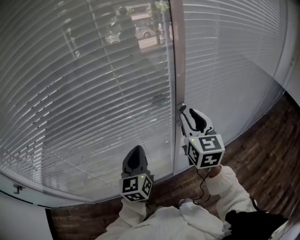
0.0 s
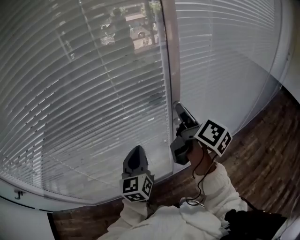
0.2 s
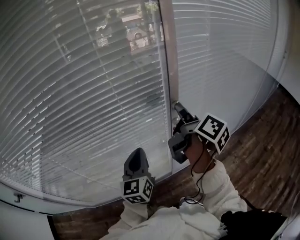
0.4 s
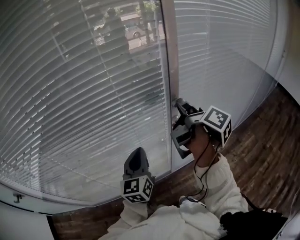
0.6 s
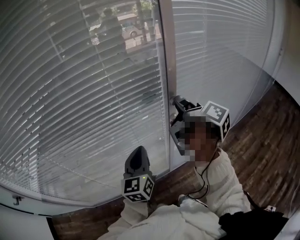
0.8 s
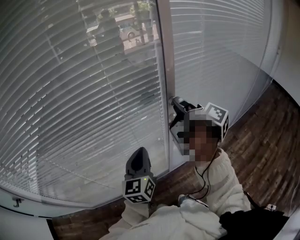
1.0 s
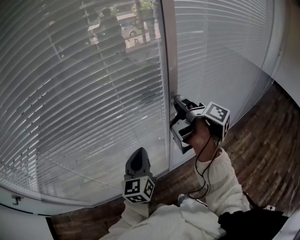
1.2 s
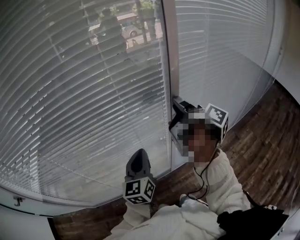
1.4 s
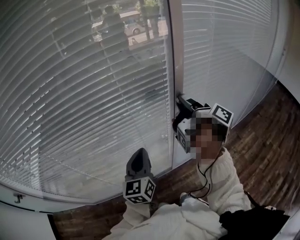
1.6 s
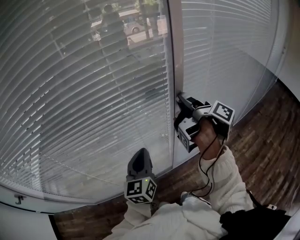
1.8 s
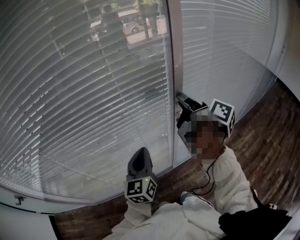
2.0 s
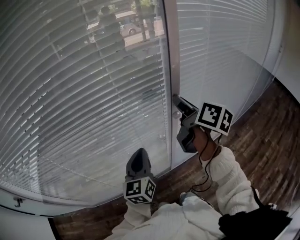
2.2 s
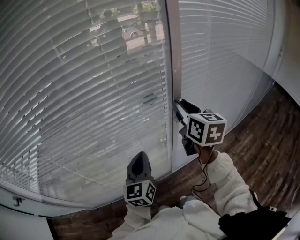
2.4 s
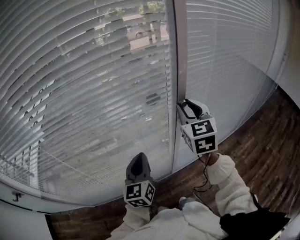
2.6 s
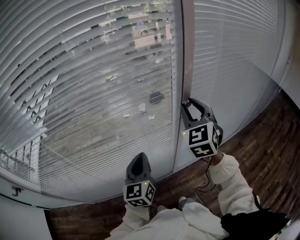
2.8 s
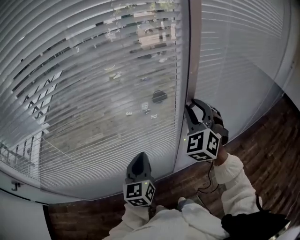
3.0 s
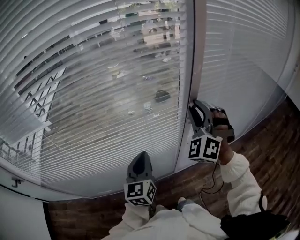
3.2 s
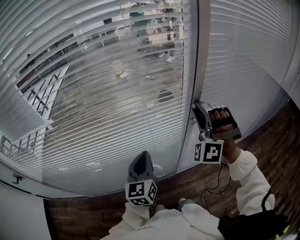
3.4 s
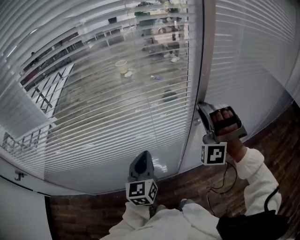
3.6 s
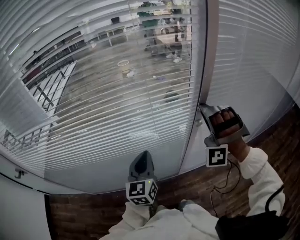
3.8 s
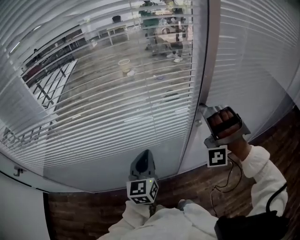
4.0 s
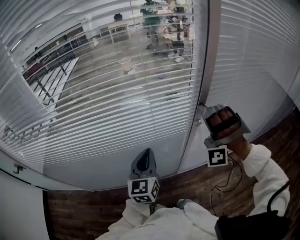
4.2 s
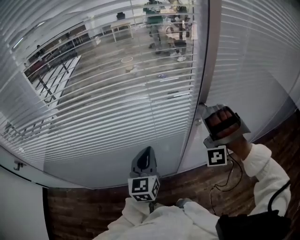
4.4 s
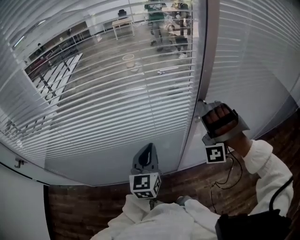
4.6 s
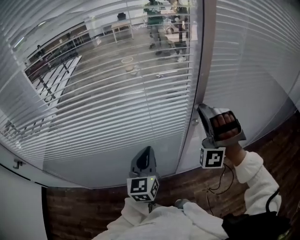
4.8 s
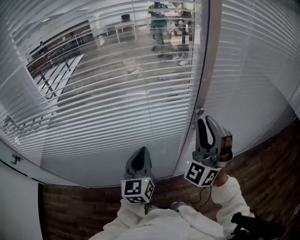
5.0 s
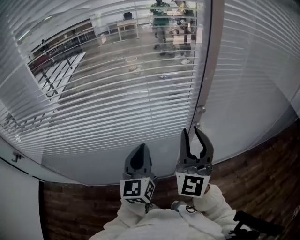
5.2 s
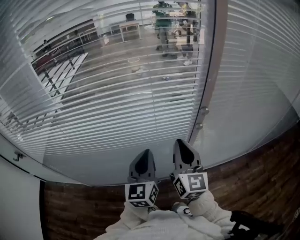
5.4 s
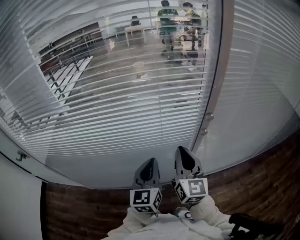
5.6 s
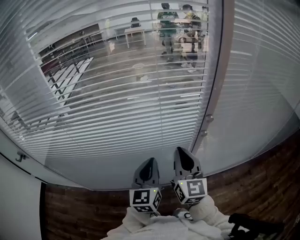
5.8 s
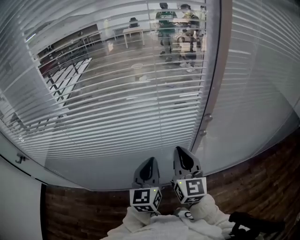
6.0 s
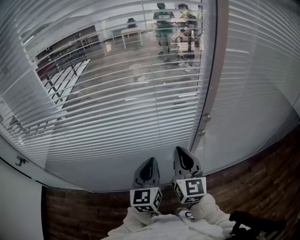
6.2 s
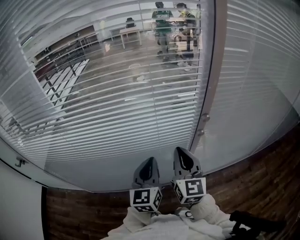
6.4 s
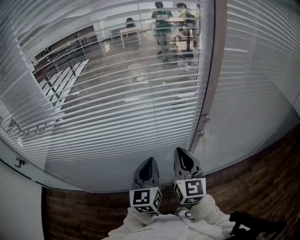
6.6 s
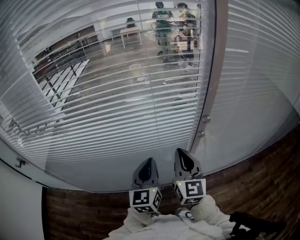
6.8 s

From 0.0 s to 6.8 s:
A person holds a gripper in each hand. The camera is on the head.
From 0.0 s to 1.4 s: The right gripper rotates around the line of its fingers by roughly 90 degrees, clockwise from behind.
From 1.4 s to 2.8 s: The right gripper twists about 120 degrees counterclockwise, seen from behind.
From 2.8 s to 4.0 s: The right gripper rotates around the line of its fingers by some 90 degrees, counterclockwise from behind.
From 4.0 s to 5.4 s: The right gripper shifts roughly 10 cm backward, to the left and downward, rotates around the line of its fingers by about 130 degrees, clockwise from behind, and closes its fingers.
From 5.4 s to 6.8 s: There are only small adjustments of the grippers.

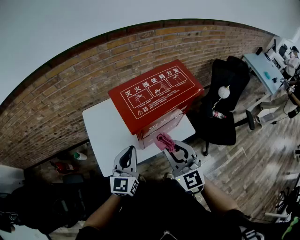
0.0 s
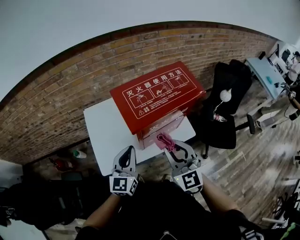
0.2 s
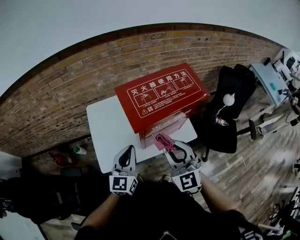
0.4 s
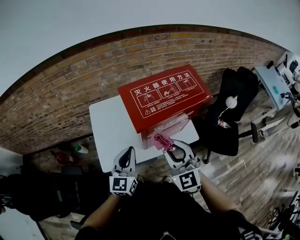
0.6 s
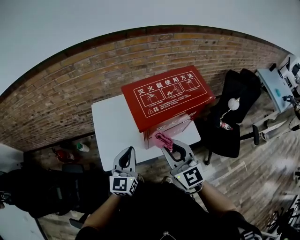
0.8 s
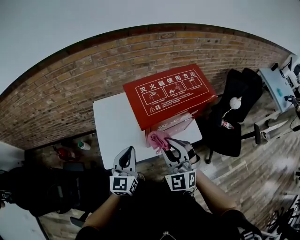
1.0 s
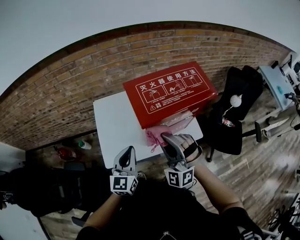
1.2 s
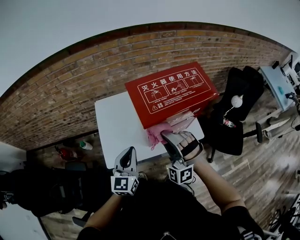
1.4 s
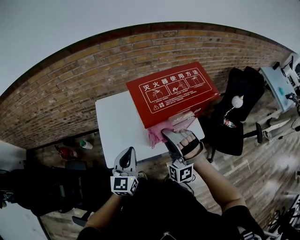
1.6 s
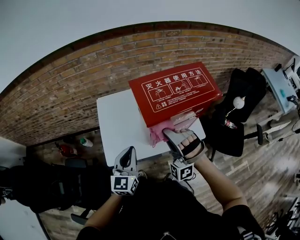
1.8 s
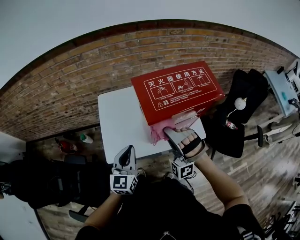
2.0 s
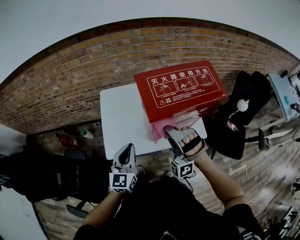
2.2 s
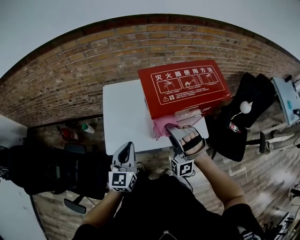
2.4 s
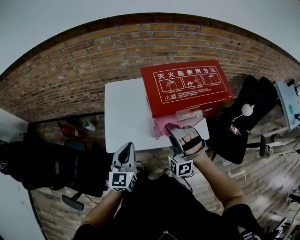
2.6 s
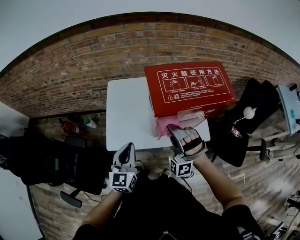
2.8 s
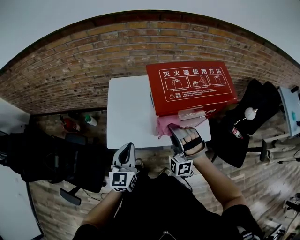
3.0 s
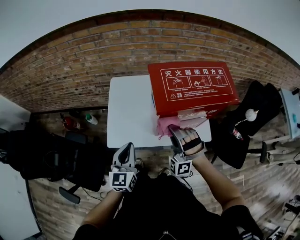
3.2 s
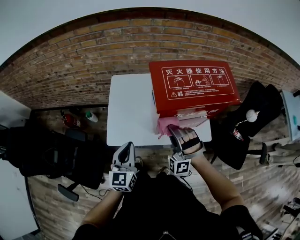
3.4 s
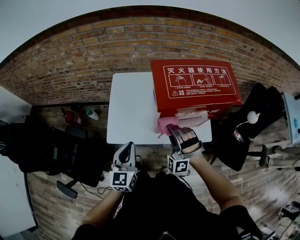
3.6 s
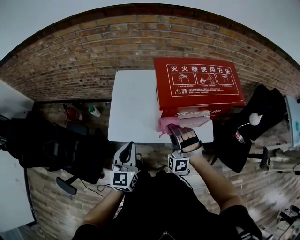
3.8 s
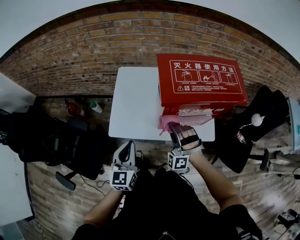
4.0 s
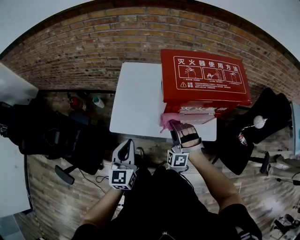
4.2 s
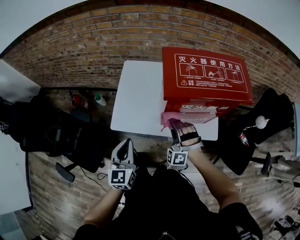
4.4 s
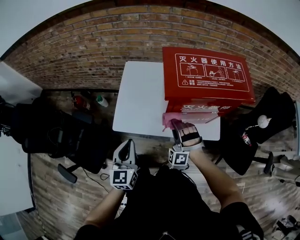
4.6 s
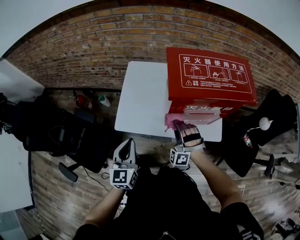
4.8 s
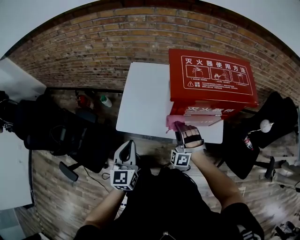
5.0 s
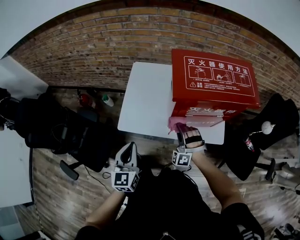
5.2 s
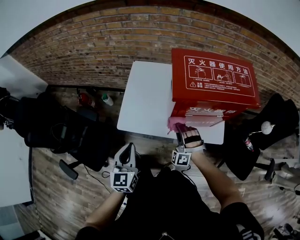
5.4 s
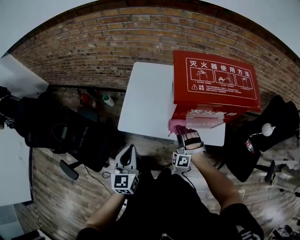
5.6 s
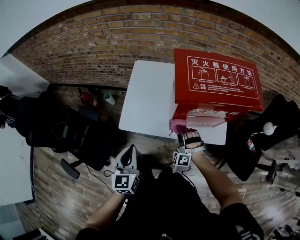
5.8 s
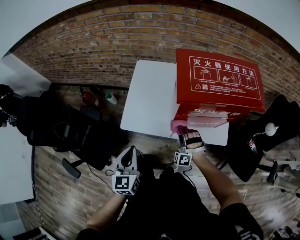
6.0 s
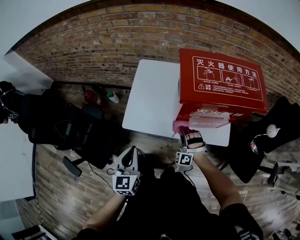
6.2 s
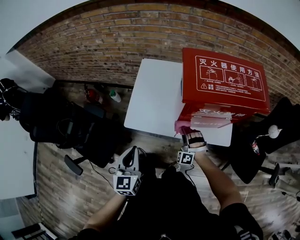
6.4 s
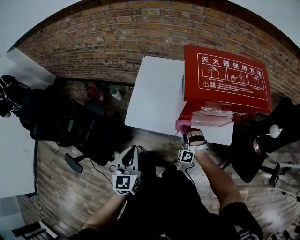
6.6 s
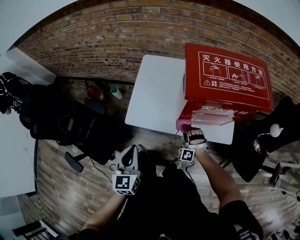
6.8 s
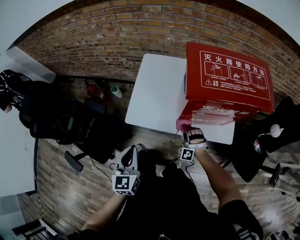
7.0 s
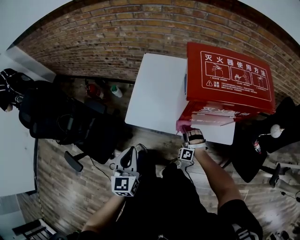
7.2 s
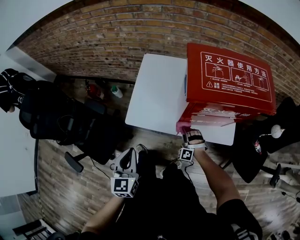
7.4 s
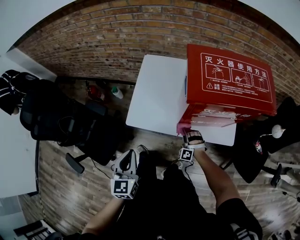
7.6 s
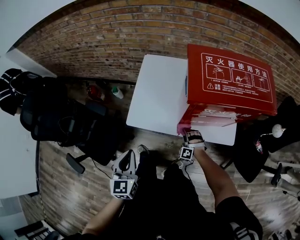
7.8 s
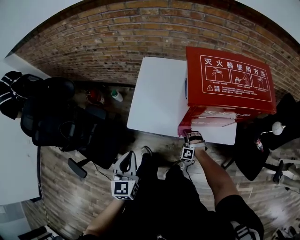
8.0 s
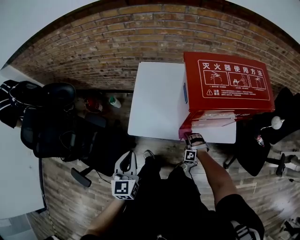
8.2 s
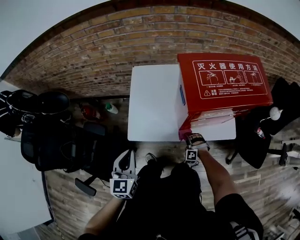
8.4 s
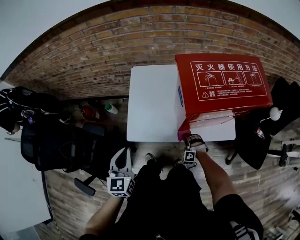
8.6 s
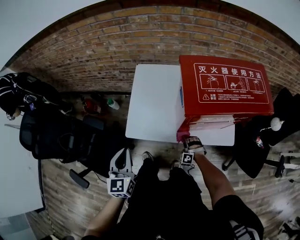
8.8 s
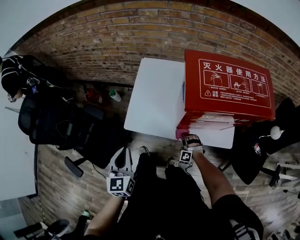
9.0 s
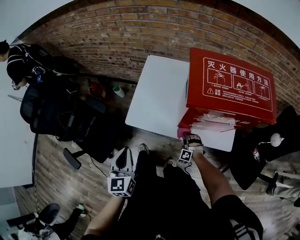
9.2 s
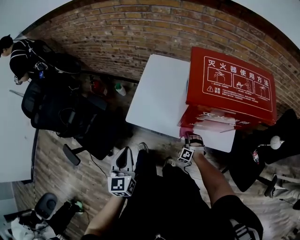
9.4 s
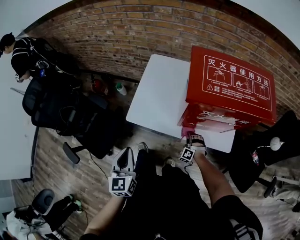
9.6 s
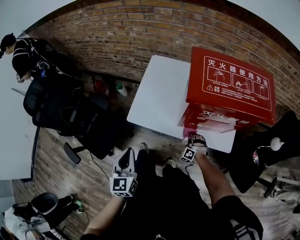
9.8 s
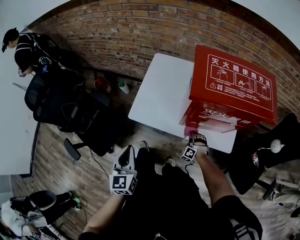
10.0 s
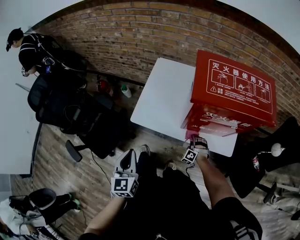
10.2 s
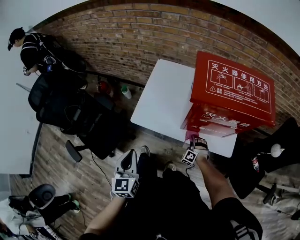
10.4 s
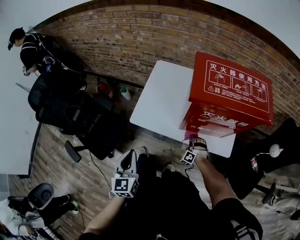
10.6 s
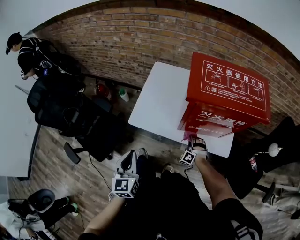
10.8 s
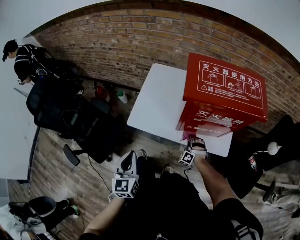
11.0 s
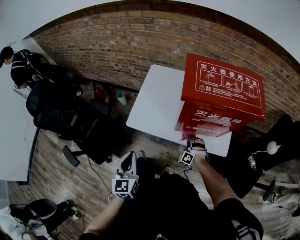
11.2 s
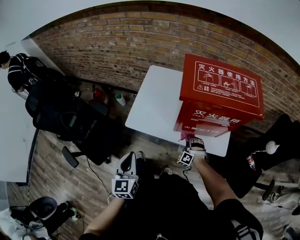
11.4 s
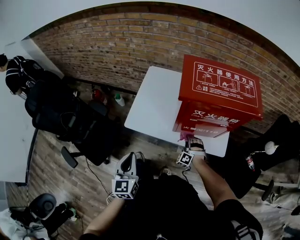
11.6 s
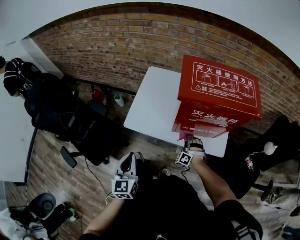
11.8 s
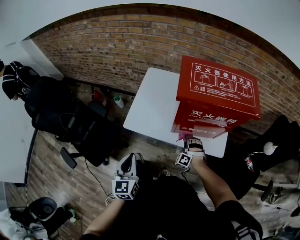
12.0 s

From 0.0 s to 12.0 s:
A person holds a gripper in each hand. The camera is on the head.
From 0.0 s to 1.6 s: The left gripper changes place by roughly 5 cm.
From 1.6 s to 3.0 s: The left gripper moves about 5 cm.
From 3.0 s to 4.4 s: The left gripper changes place by approximately 5 cm.
From 9.0 s to 10.4 s: The left gripper changes place by some 10 cm.

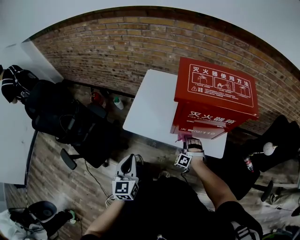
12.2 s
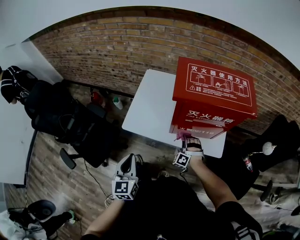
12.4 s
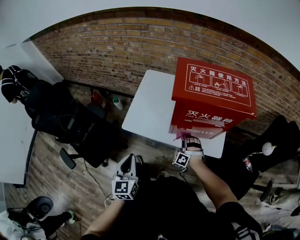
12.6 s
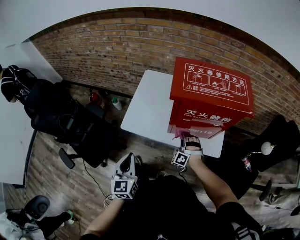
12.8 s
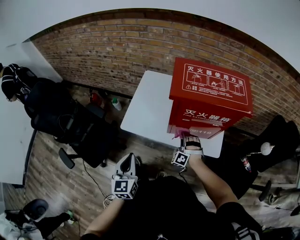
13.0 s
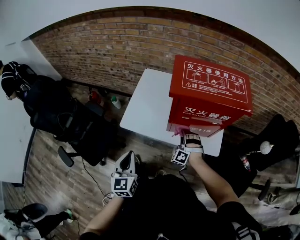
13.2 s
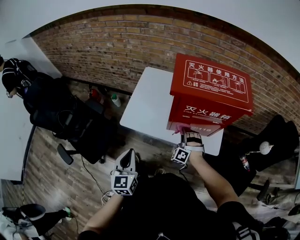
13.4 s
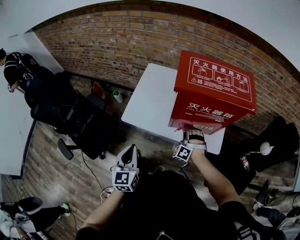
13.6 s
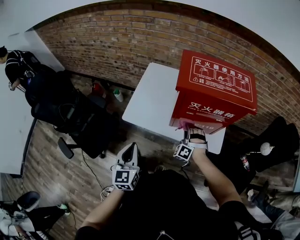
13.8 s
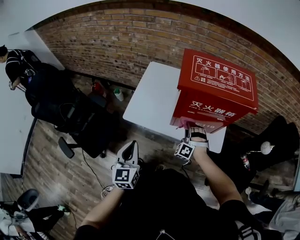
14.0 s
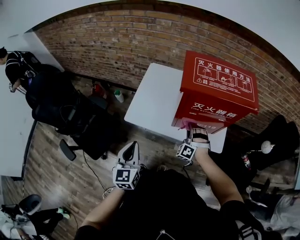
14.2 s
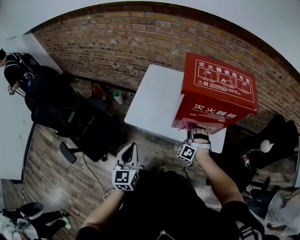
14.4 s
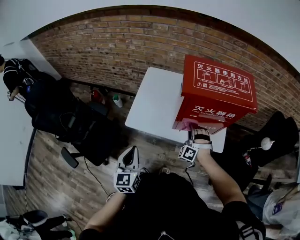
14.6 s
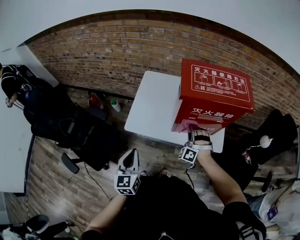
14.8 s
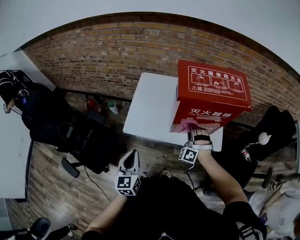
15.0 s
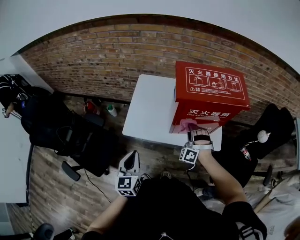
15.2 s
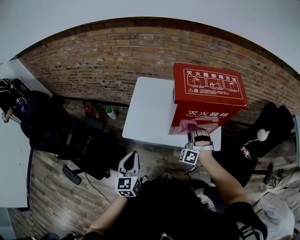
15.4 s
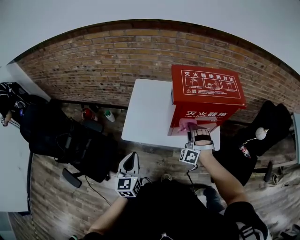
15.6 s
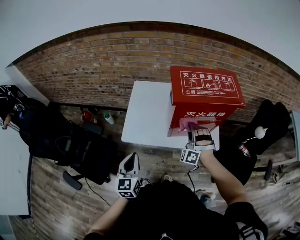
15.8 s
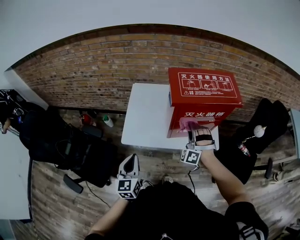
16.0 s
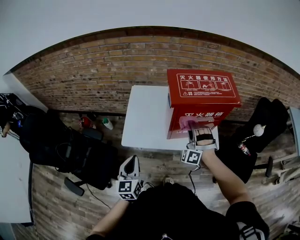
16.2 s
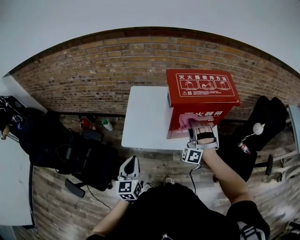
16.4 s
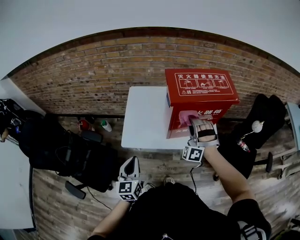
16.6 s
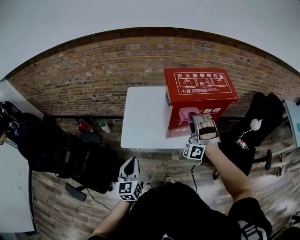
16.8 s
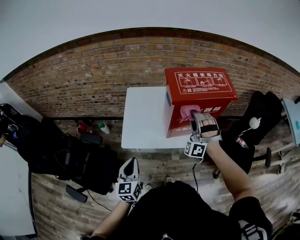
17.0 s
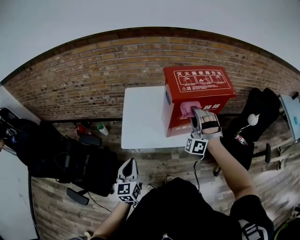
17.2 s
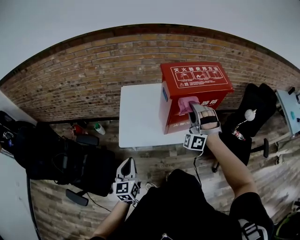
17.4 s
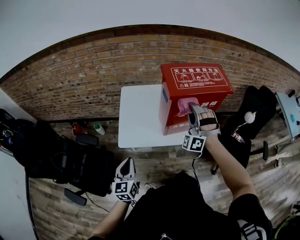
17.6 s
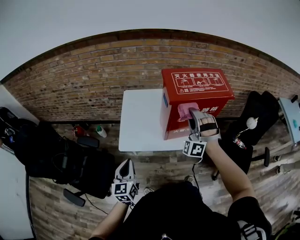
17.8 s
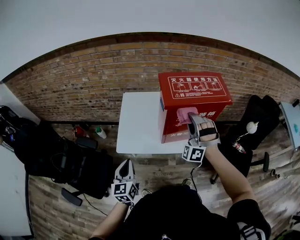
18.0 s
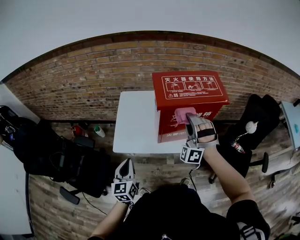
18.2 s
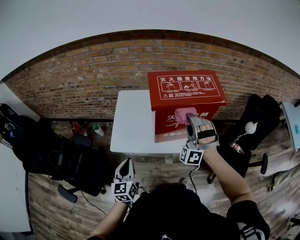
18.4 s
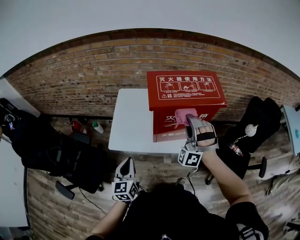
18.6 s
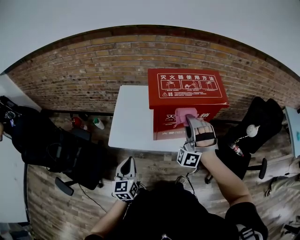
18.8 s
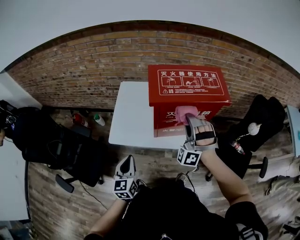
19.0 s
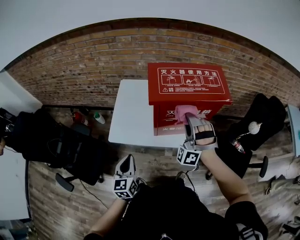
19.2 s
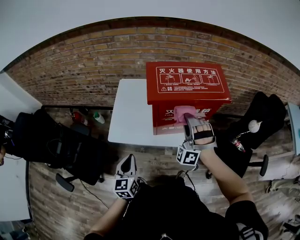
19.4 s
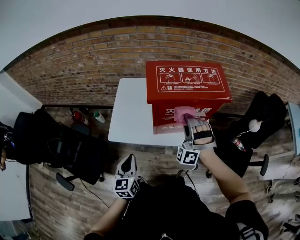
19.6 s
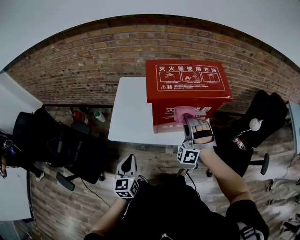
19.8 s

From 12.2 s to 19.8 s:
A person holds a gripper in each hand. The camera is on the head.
From 18.2 s to 19.8 s: The left gripper changes place by roughly 5 cm.
